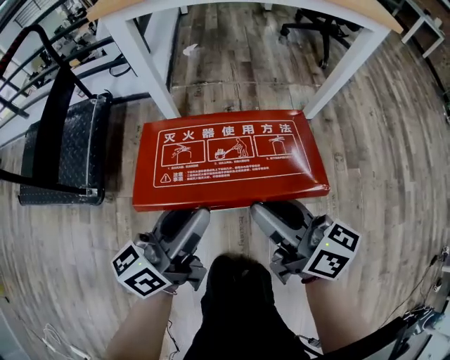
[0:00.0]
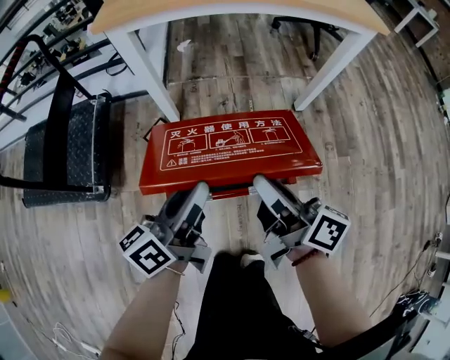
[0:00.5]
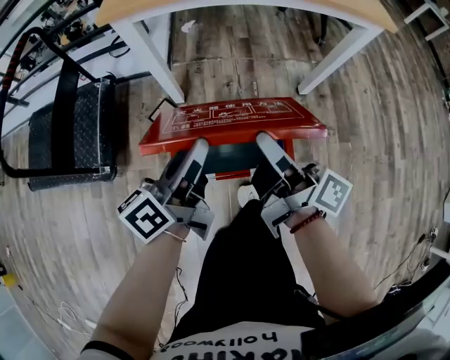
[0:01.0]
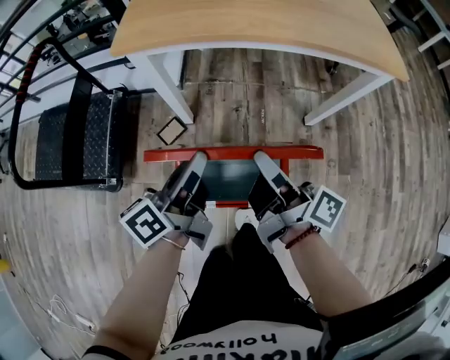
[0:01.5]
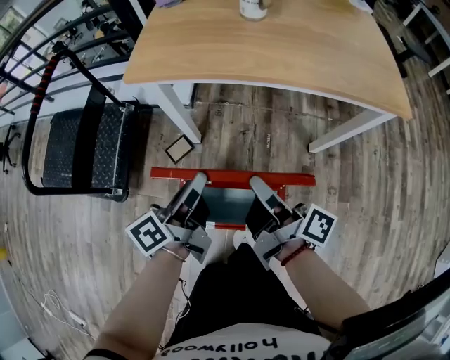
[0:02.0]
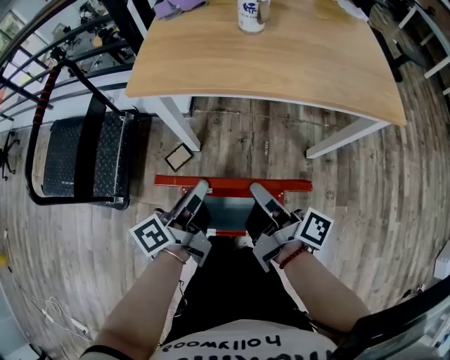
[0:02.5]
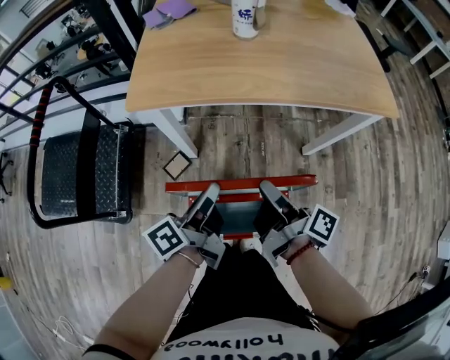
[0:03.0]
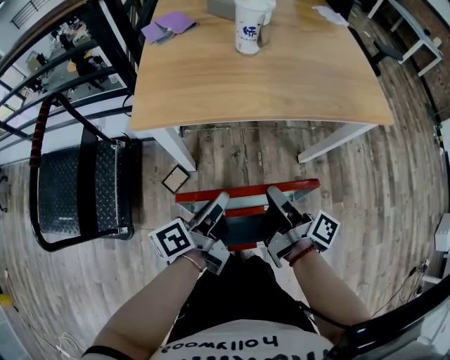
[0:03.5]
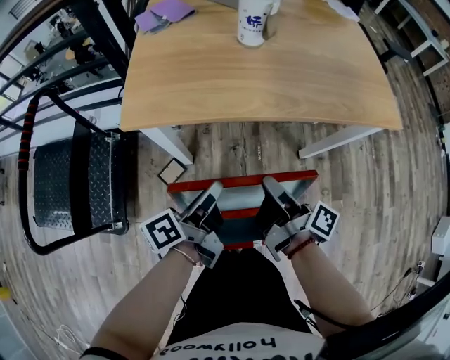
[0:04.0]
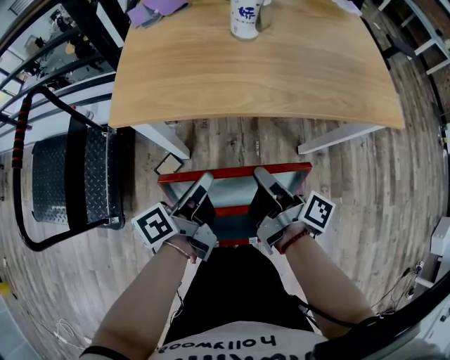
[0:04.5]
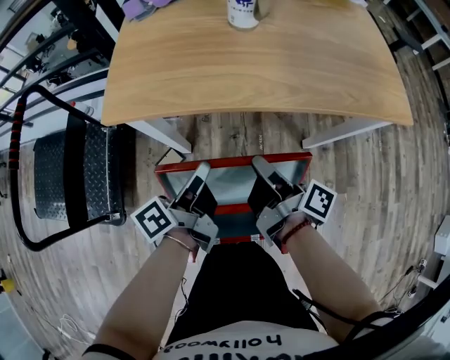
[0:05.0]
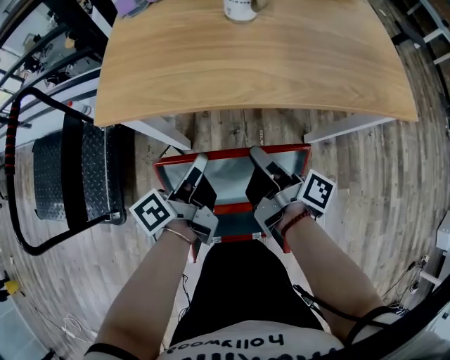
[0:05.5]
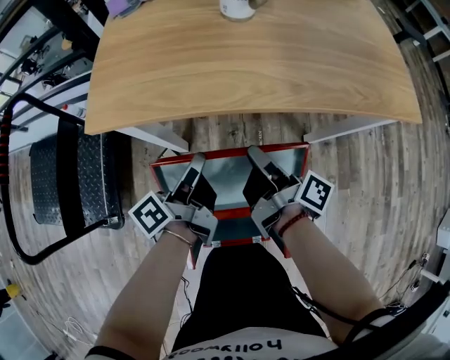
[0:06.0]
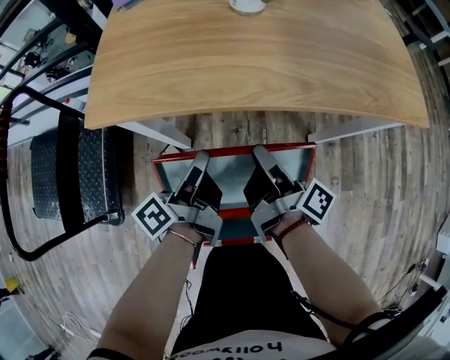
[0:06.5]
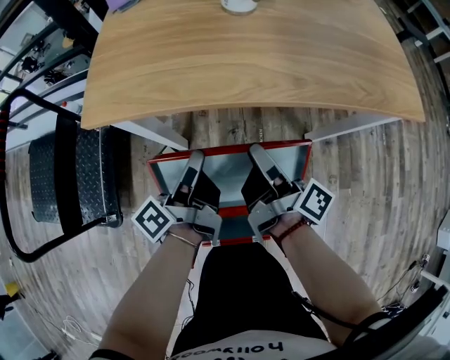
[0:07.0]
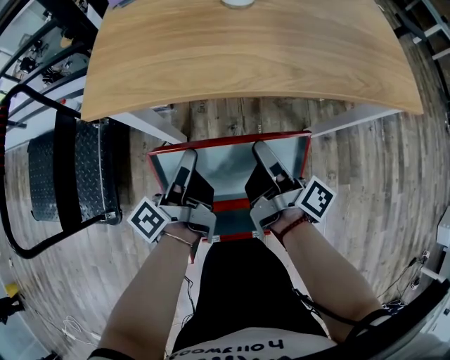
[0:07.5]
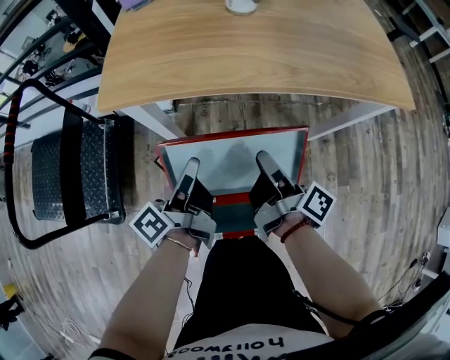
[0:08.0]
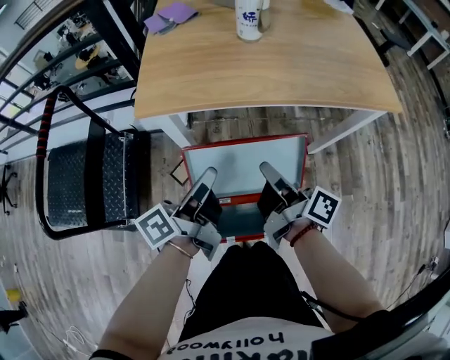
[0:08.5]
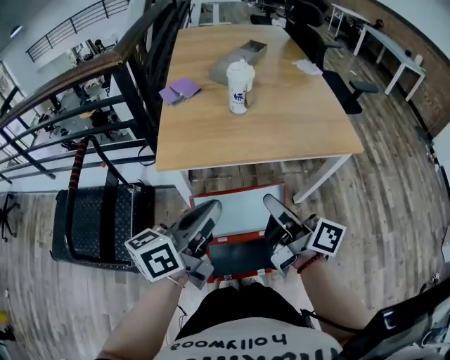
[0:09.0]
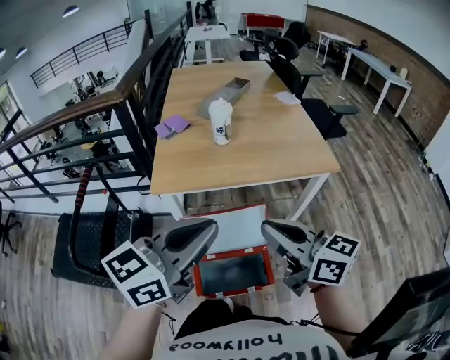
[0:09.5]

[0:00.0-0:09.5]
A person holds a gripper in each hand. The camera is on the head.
0:00.0 to 0:02.0: Both grippers travel together forward and upward, roughly 25 cm. The right gripper rotates around the line of its fingers by approximately 40 degrees, clockwise from behind, and closes its fingers, while the left gripper turns by roughly 30 degrees, and closes its fingers.
0:02.0 to 0:04.0: The two grippers go roughly 10 cm forward.
0:04.0 to 0:05.5: Both grippers move forward, about 5 cm.
0:05.5 to 0:07.5: The right gripper opens up.
0:07.5 to 0:09.5: Both grippers travel together upward and backward, approximately 40 cm. The left gripper twists some 70 degrees clockwise, seen from behind; the right gripper rolls counterclockwise, seen from behind, by some 60 degrees, and closes its fingers.

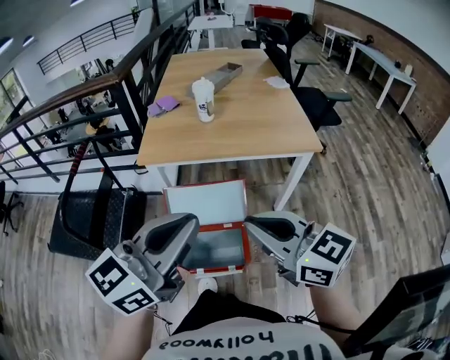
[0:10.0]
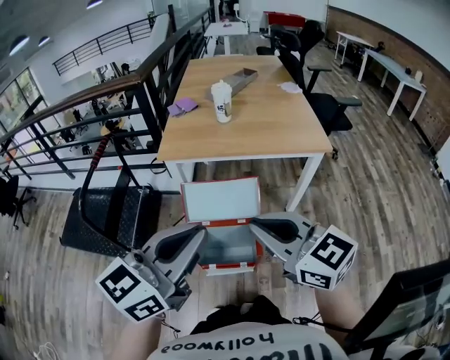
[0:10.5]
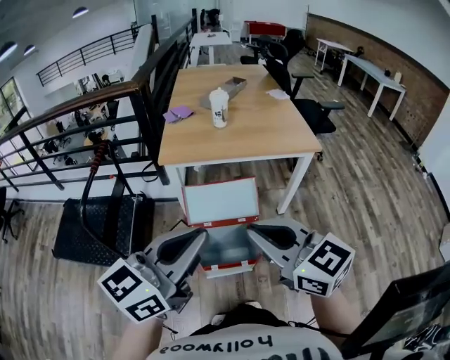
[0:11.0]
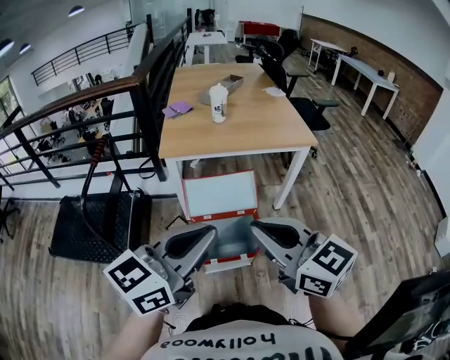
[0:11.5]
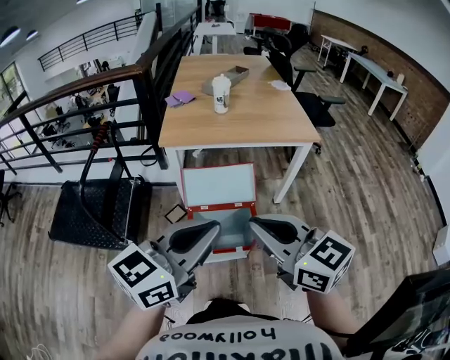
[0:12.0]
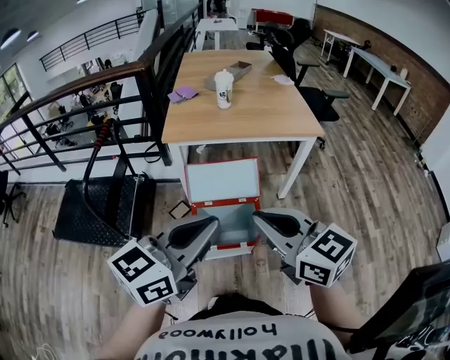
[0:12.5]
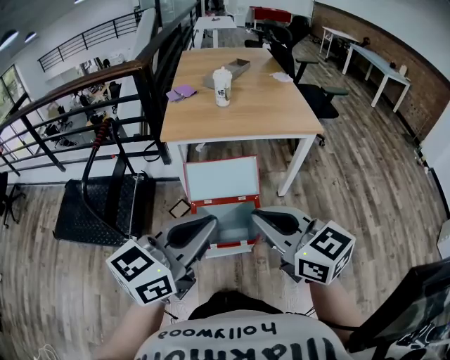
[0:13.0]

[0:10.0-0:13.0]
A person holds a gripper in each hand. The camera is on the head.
0:10.0 to 0:11.5: Both grippers move backward and to the left, roughly 15 cm.
0:11.5 to 0:13.0: The grippers stay close to where they were, moving slightly.

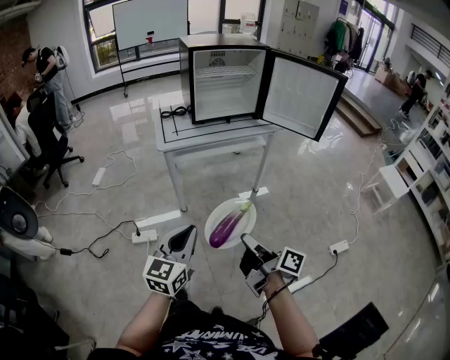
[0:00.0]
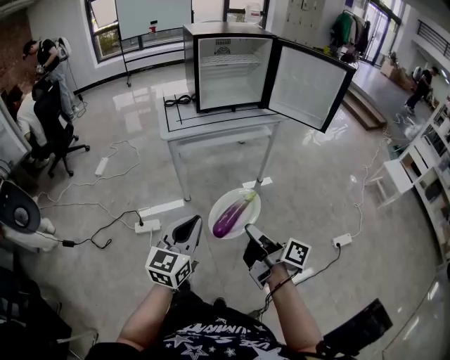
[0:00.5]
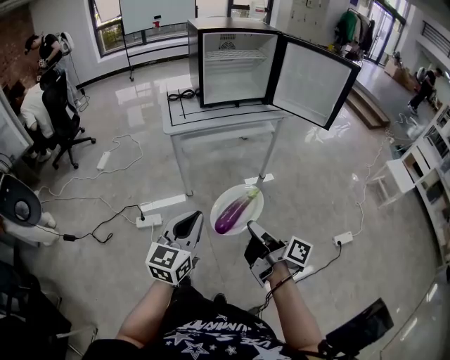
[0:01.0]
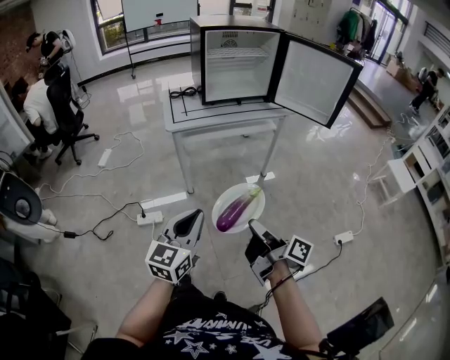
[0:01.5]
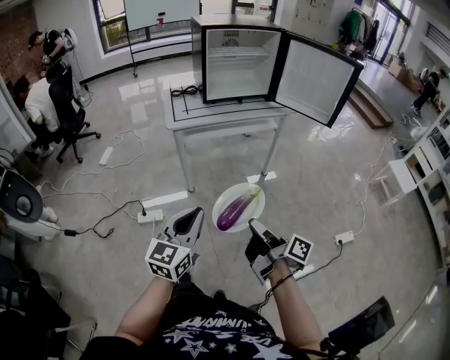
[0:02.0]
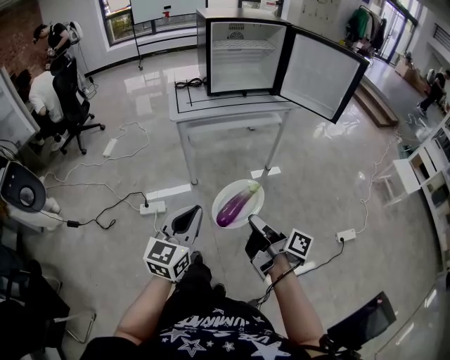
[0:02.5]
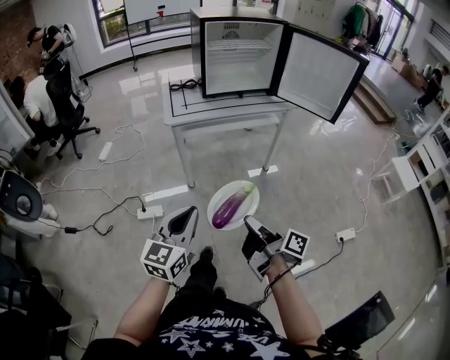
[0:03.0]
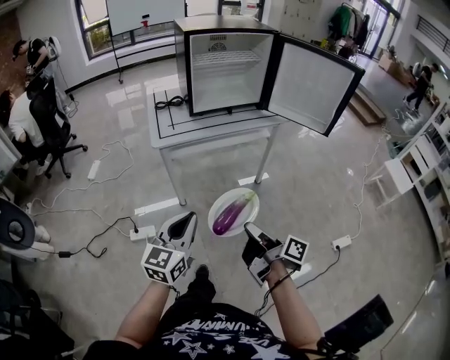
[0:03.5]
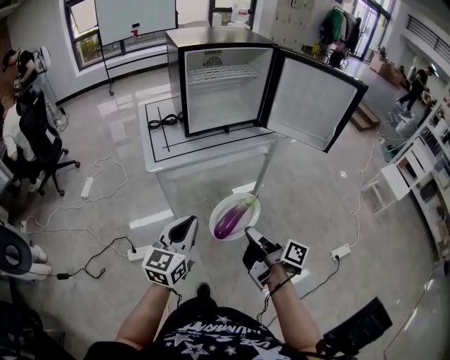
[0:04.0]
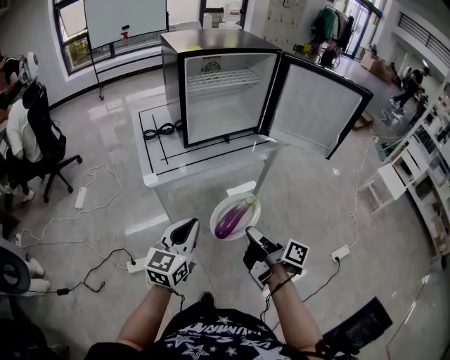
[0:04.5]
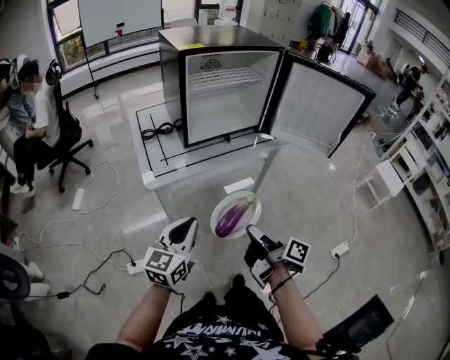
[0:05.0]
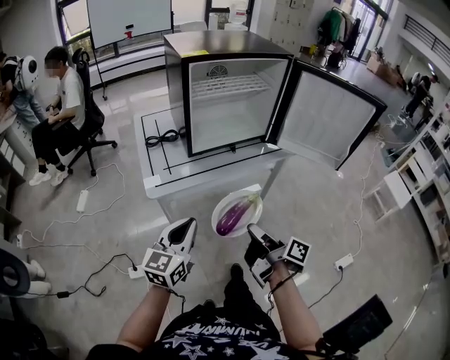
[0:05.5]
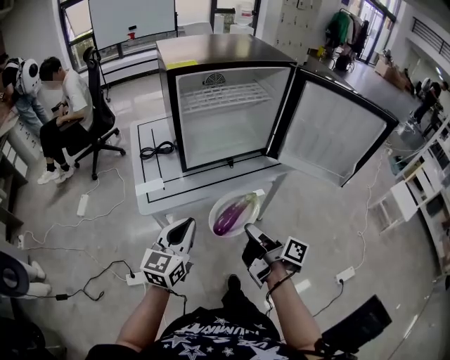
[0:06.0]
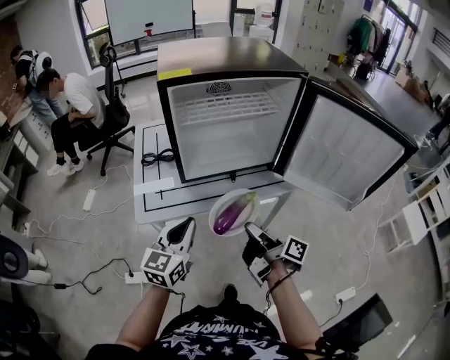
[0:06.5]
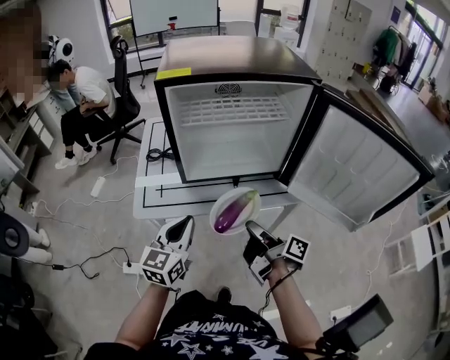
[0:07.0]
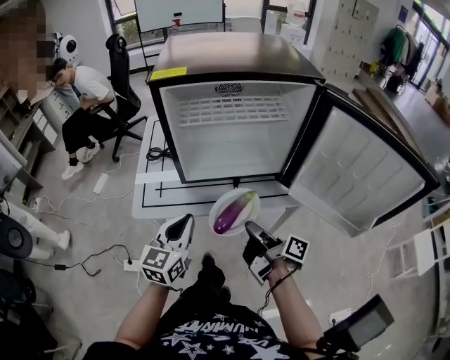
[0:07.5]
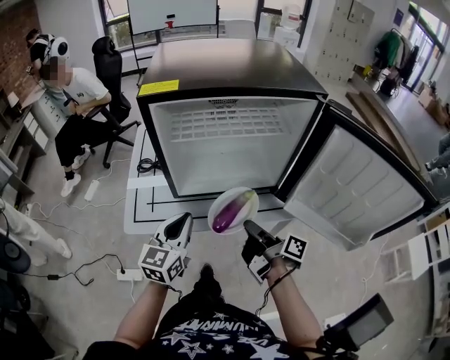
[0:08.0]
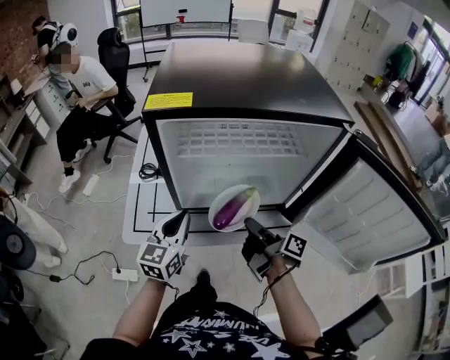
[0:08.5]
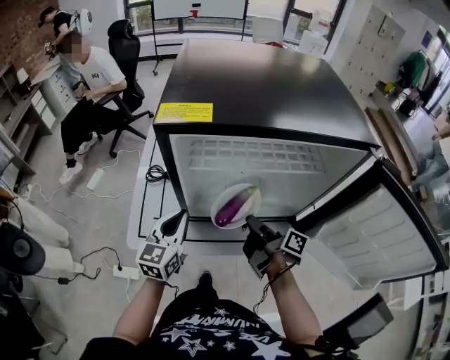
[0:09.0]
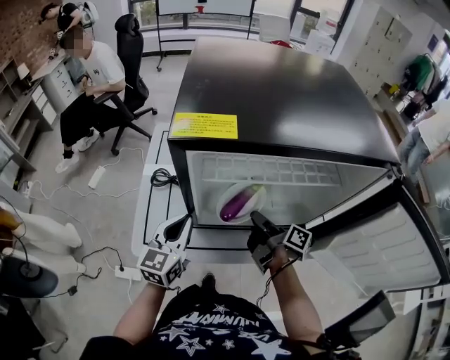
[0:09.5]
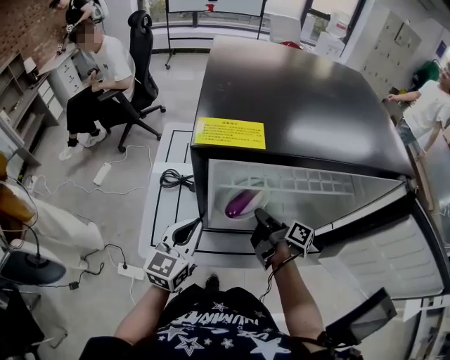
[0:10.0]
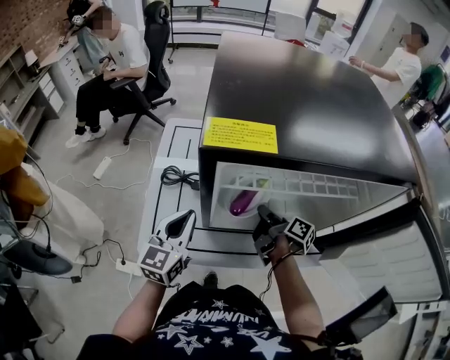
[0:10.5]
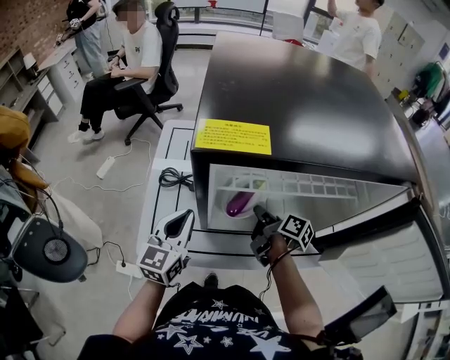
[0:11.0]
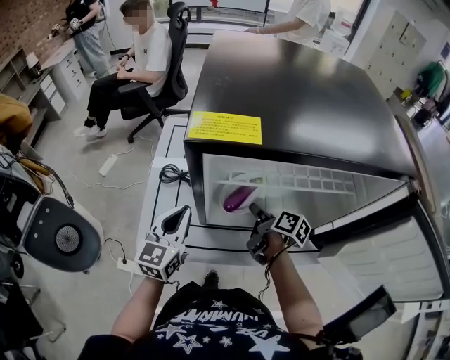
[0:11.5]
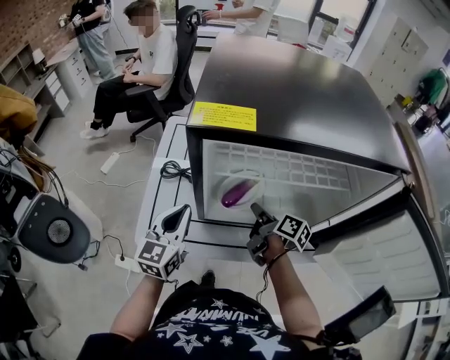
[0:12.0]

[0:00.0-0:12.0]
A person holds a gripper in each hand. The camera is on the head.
0:02.0 to 0:04.0: The left gripper ends up approximately 20 cm from where it was.
0:04.0 to 0:06.0: The left gripper moves roughly 20 cm.
0:06.0 to 0:08.0: The left gripper changes place by roughly 20 cm.
0:08.0 to 0:10.0: The left gripper shifts by roughly 15 cm.

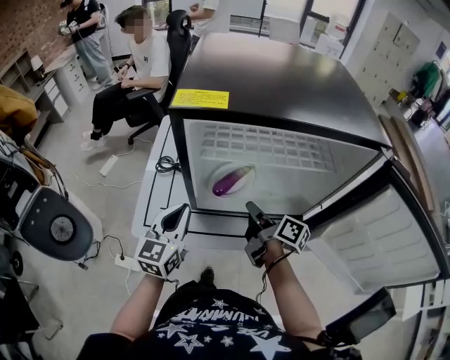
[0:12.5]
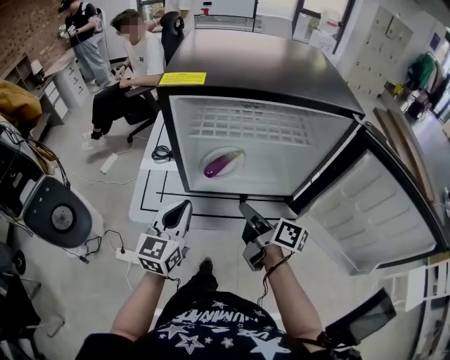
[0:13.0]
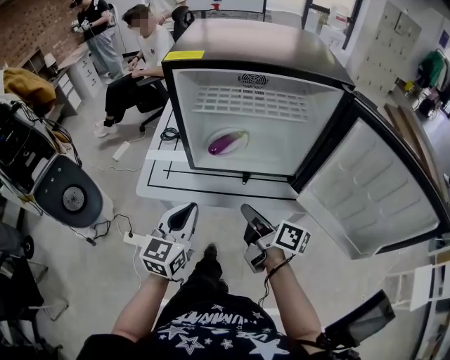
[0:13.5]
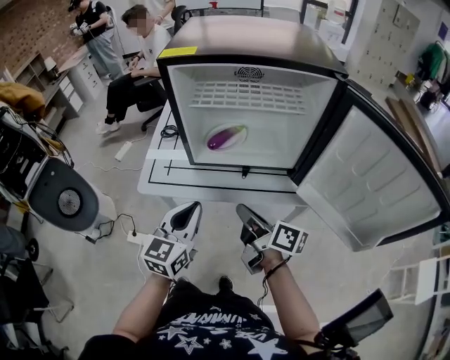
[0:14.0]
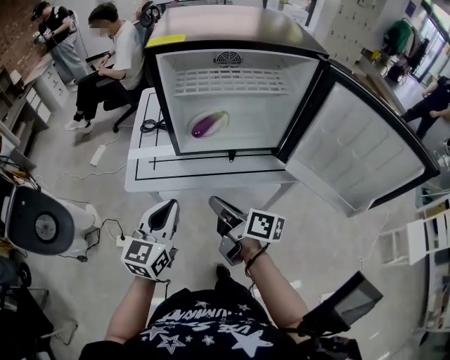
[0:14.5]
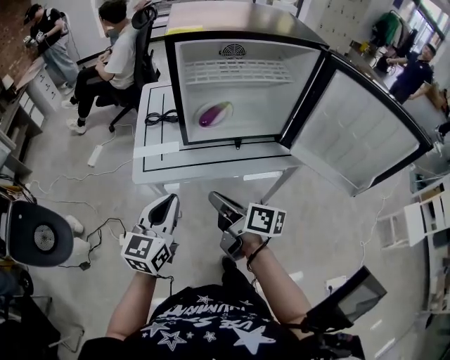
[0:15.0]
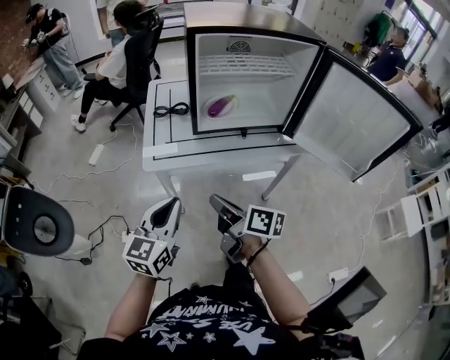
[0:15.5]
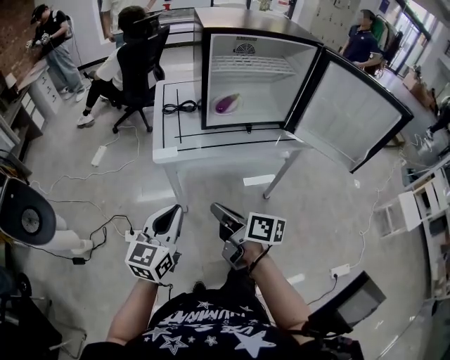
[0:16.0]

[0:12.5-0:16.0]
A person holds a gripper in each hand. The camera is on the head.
0:12.5 to 0:14.5: The left gripper shifts by roughly 20 cm.
0:14.5 to 0:16.0: The left gripper changes place by approximately 20 cm.
